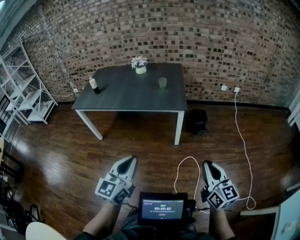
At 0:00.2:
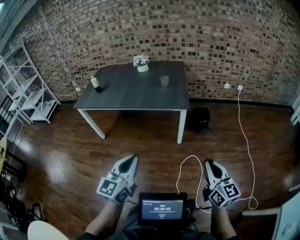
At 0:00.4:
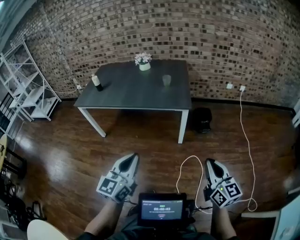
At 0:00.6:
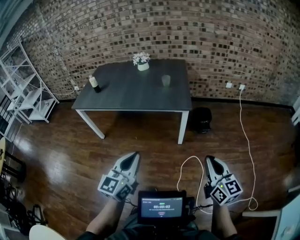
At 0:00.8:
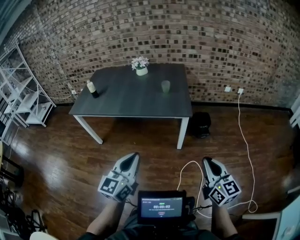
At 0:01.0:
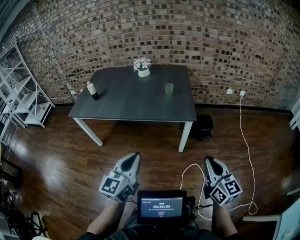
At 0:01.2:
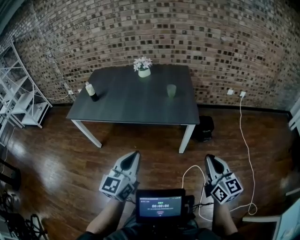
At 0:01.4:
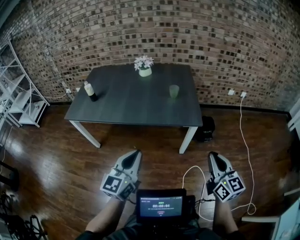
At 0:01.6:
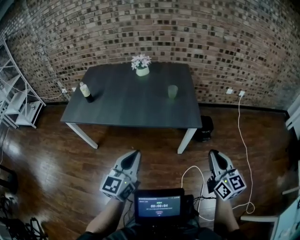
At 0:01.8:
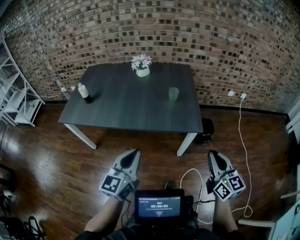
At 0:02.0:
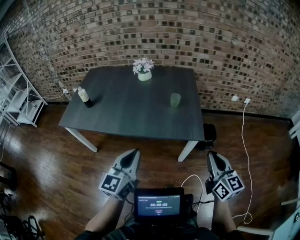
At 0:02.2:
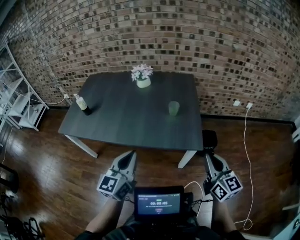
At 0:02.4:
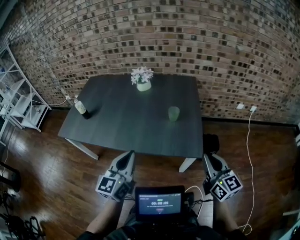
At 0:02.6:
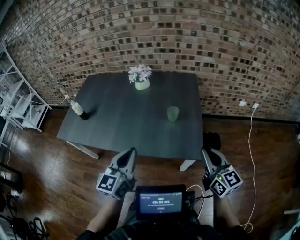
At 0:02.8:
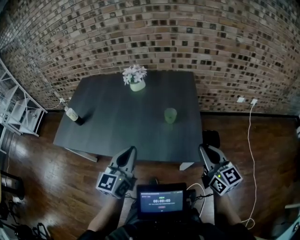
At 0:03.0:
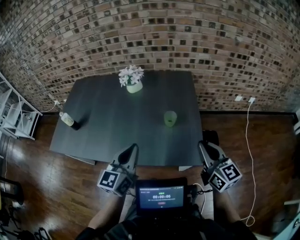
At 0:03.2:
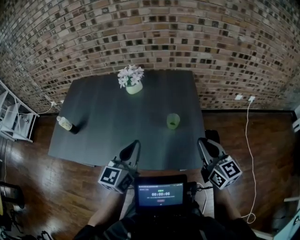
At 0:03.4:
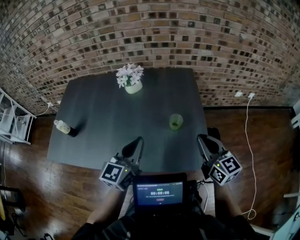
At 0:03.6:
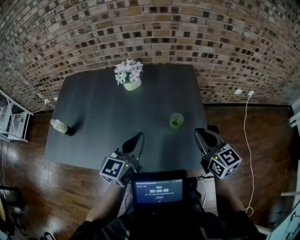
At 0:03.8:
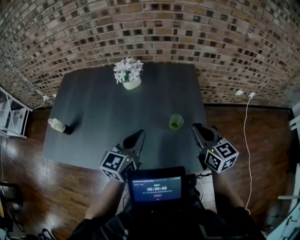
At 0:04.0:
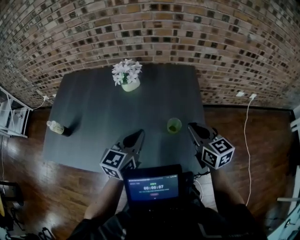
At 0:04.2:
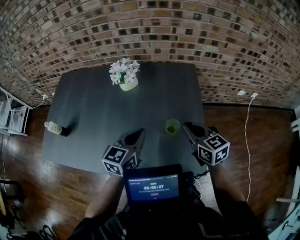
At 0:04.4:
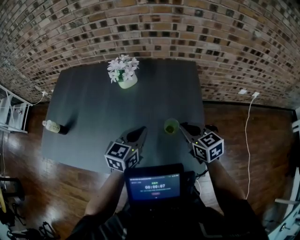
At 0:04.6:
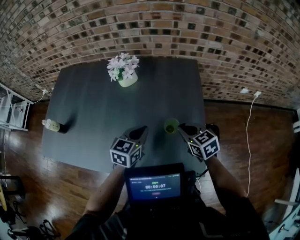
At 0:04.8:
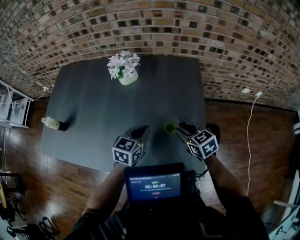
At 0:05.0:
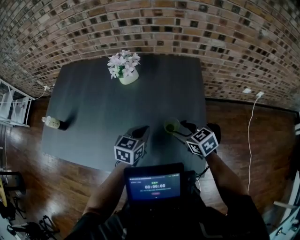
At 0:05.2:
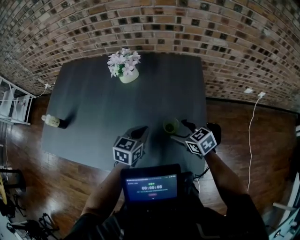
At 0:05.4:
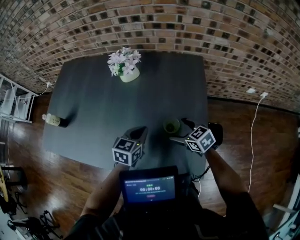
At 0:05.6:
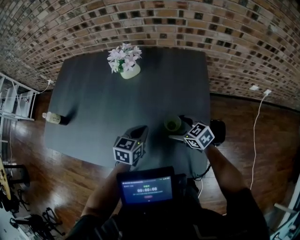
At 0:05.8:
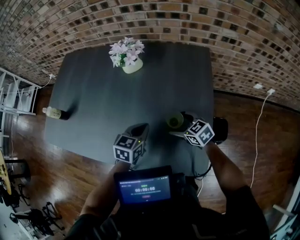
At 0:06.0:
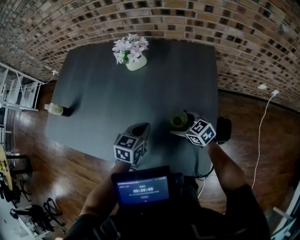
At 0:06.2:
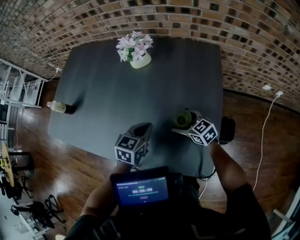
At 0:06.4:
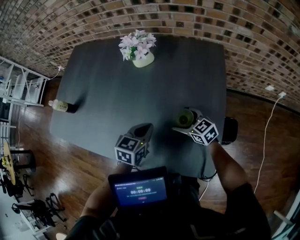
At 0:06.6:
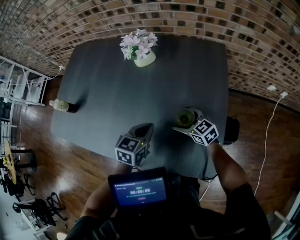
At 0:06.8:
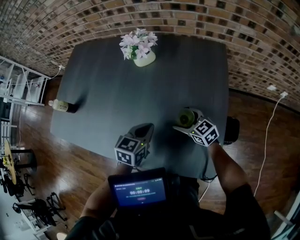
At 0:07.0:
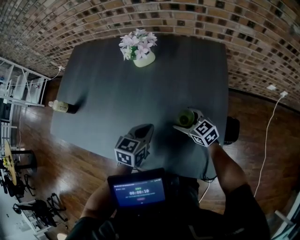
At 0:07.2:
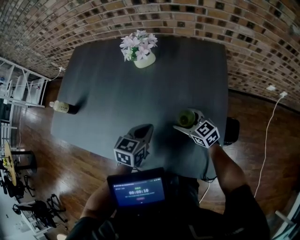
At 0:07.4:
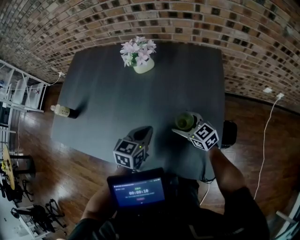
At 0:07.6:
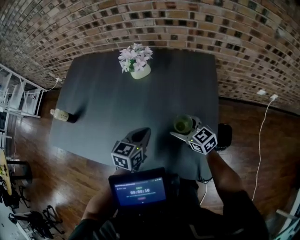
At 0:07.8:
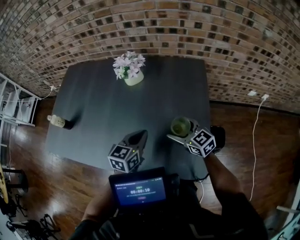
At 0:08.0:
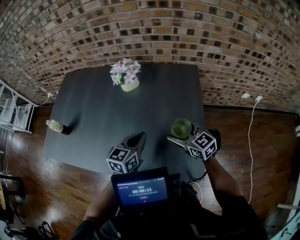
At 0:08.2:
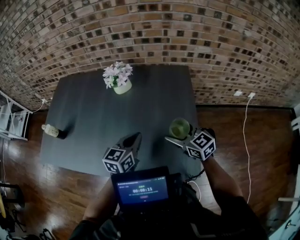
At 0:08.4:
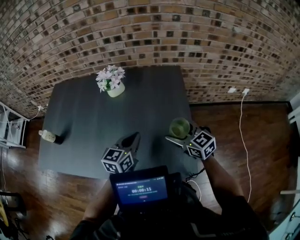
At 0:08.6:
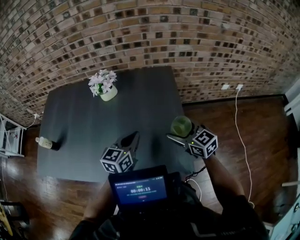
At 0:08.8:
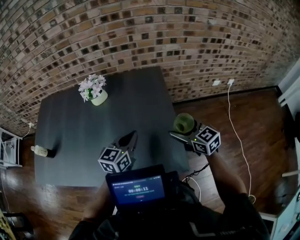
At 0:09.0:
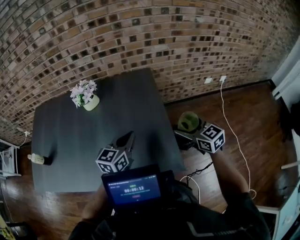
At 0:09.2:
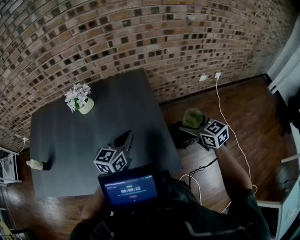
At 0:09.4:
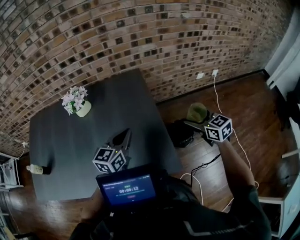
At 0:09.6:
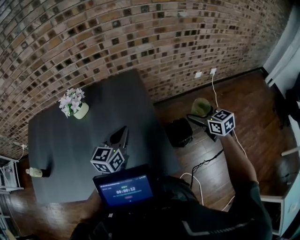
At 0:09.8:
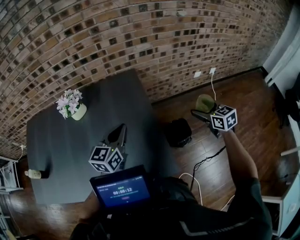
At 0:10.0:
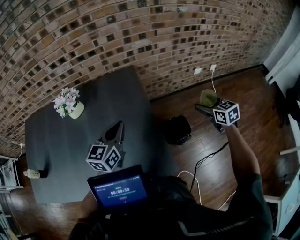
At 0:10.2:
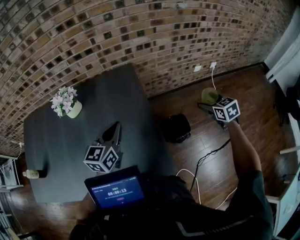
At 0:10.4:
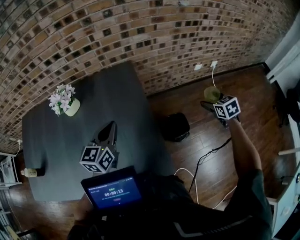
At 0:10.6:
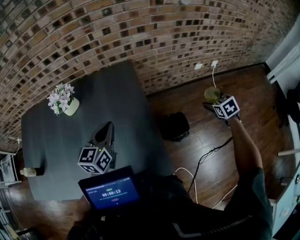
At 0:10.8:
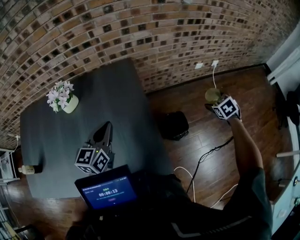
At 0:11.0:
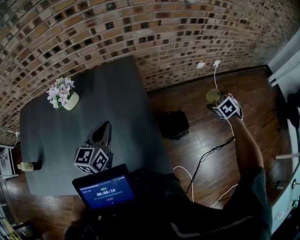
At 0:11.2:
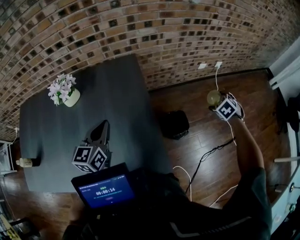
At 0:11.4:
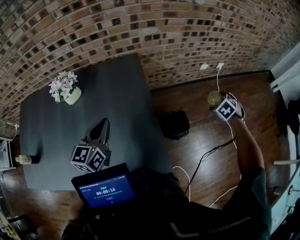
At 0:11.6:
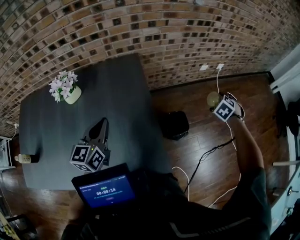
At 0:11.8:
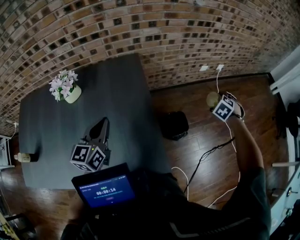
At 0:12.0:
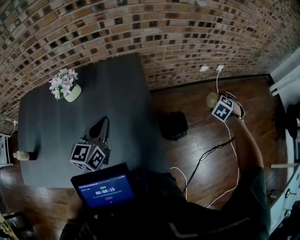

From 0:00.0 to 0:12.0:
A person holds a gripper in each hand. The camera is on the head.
From 0:00.0 to 0:01.6: Both grippers travel together forward, some 30 cm.
From 0:01.6 to 0:03.0: The two grippers go roughly 35 cm forward.
From 0:03.0 to 0:04.4: The left gripper goes some 20 cm forward. Meanwhile the right gripper moves forward and downward, about 25 cm, and swivels about 30 degrees.
From 0:04.4 to 0:06.0: The two grippers go about 15 cm downward. The right gripper rotates roughly 30 degrees, and opens its fingers.
From 0:06.0 to 0:07.6: The right gripper shifts about 5 cm upward.
From 0:07.6 to 0:09.0: The left gripper heads to the right and upward, covering some 15 cm, and turns by approximately 20 degrees; the right gripper moves to the right, upward and backward, some 25 cm, and swivels roughly 30 degrees.
From 0:09.0 to 0:10.4: The left gripper is displaced forward by approximately 10 cm; the right gripper shifts approximately 30 cm to the right and forward, and changes its angle by some 40 degrees.
From 0:10.4 to 0:12.0: The right gripper swivels about 50 degrees.

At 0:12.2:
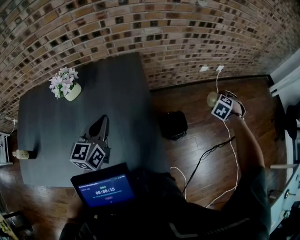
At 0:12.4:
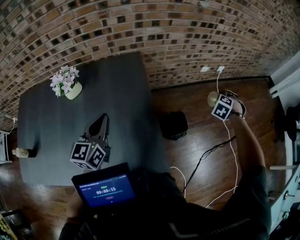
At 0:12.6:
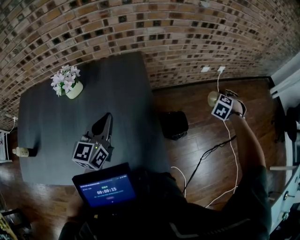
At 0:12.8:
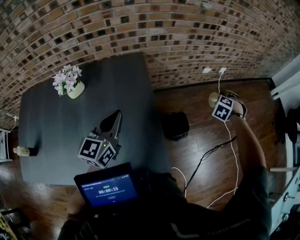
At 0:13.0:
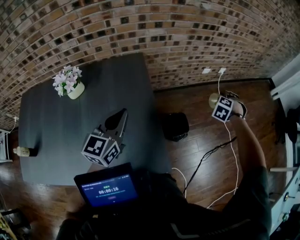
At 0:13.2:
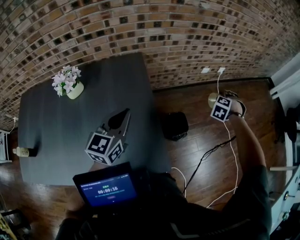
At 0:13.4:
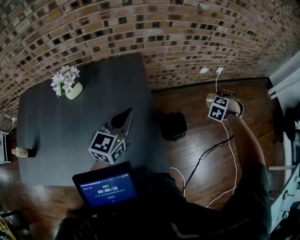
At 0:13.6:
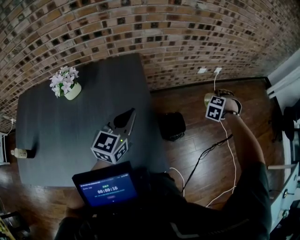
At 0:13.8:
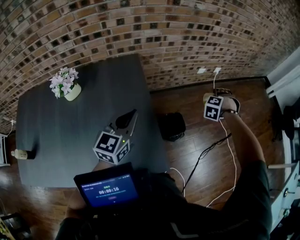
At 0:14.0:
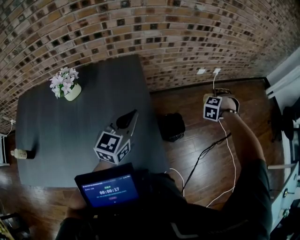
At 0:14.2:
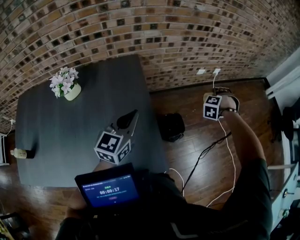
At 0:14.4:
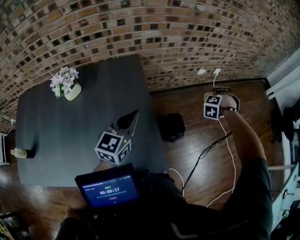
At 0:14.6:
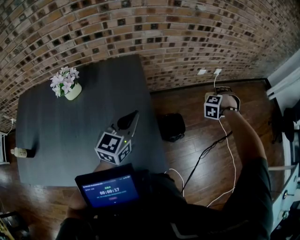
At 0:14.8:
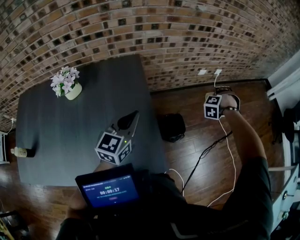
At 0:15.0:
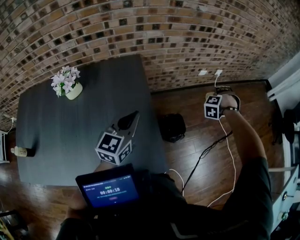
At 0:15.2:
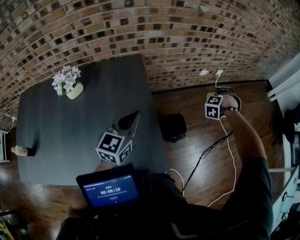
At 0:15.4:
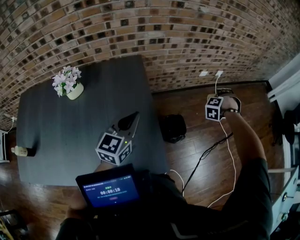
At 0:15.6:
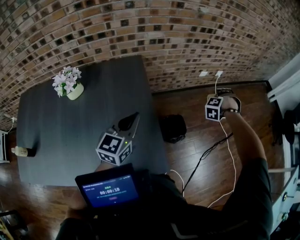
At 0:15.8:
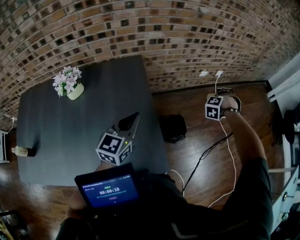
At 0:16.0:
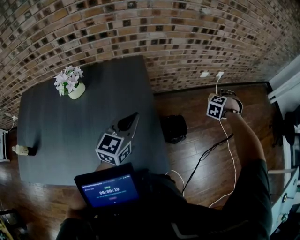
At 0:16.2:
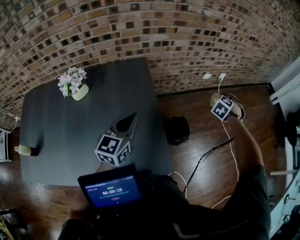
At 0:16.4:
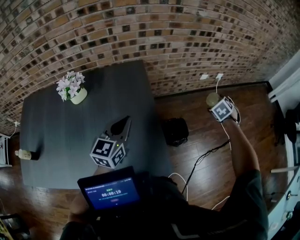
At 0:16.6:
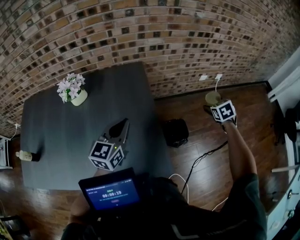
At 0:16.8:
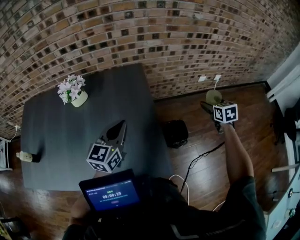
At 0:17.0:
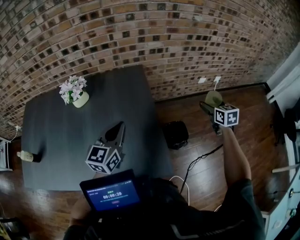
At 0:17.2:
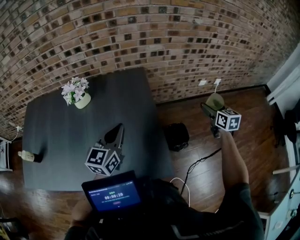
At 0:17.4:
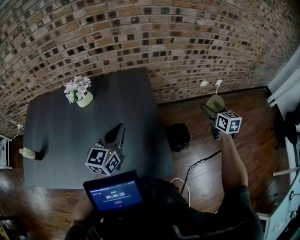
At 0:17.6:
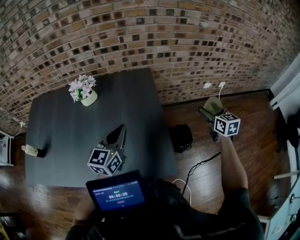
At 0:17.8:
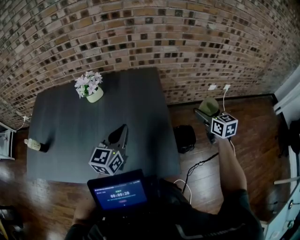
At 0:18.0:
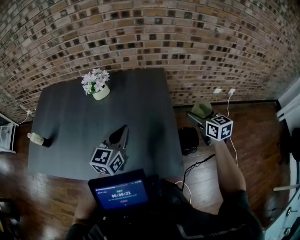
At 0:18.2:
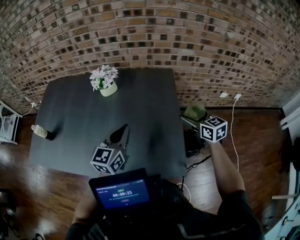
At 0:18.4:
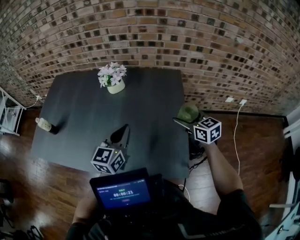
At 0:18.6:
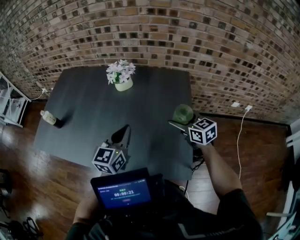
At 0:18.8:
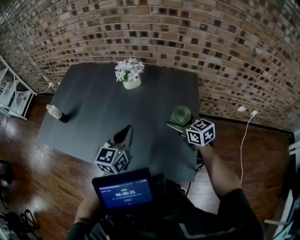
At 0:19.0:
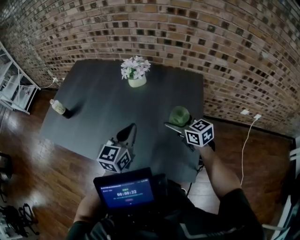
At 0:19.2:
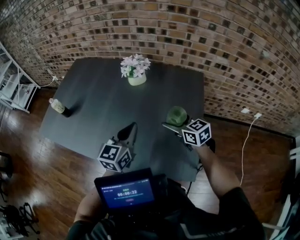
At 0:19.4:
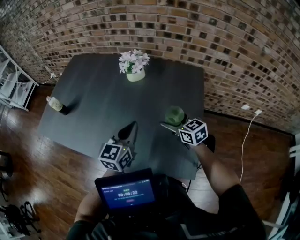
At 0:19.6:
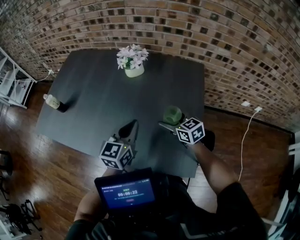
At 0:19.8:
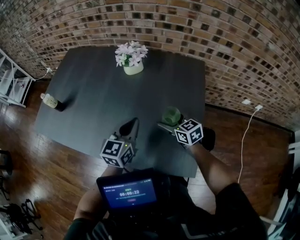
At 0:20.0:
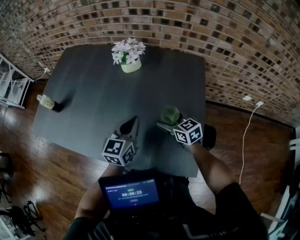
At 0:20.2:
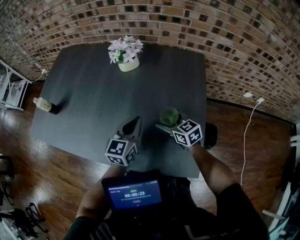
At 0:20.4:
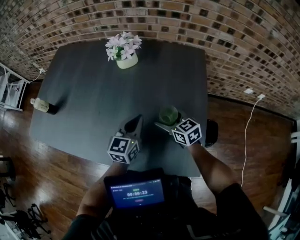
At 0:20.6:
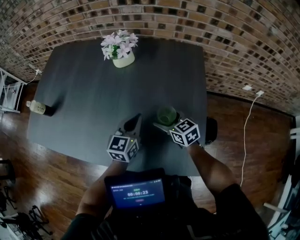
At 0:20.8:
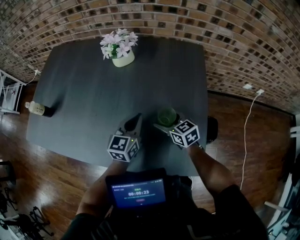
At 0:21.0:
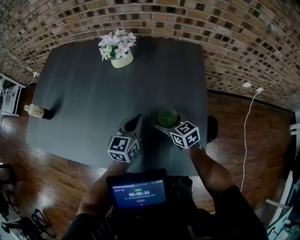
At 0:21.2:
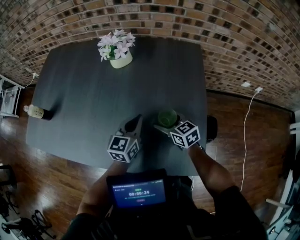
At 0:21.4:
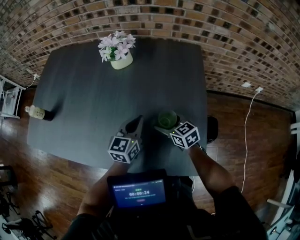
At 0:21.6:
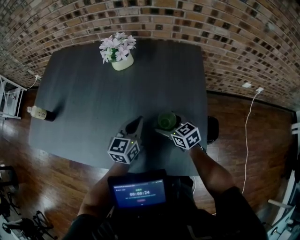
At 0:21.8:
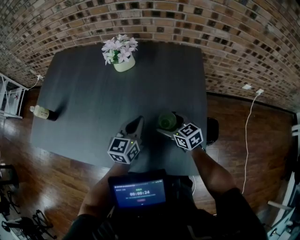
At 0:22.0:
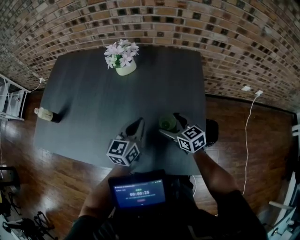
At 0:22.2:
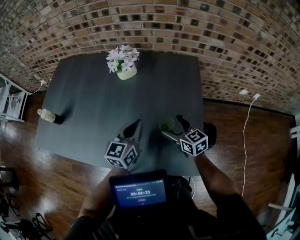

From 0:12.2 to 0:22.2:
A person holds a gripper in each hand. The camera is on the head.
From 0:12.2 to 0:13.6: The left gripper travels to the right and forward by about 10 cm.
From 0:13.6 to 0:15.0: The grippers make only small movements.
From 0:15.0 to 0:16.4: The right gripper rolls clockwise, seen from behind, by approximately 50 degrees. The left gripper changes place by approximately 5 cm.
From 0:16.4 to 0:18.0: The right gripper ends up about 25 cm from where it was, and tips its fingers upward by some 40 degrees, while the left gripper shifts by about 15 cm.
From 0:18.0 to 0:19.4: The left gripper ends up approximately 10 cm from where it was. The right gripper ends up approximately 30 cm from where it was, and changes its angle by about 30 degrees.
From 0:19.4 to 0:20.8: The left gripper is displaced downward and forward by approximately 15 cm, while the right gripper travels downward by roughly 15 cm.
From 0:20.8 to 0:22.2: Both grippers move upward, approximately 10 cm.

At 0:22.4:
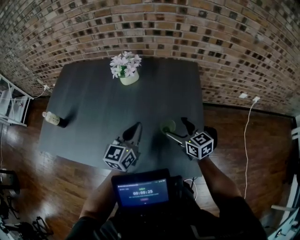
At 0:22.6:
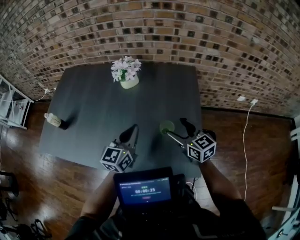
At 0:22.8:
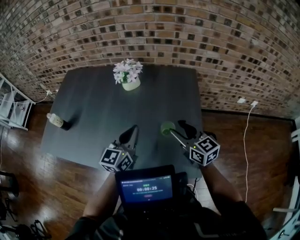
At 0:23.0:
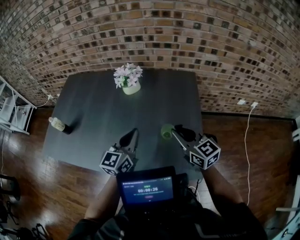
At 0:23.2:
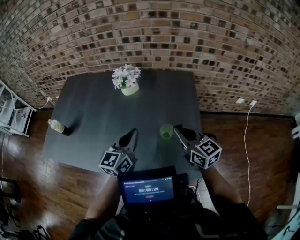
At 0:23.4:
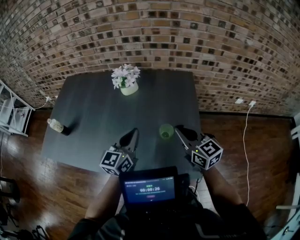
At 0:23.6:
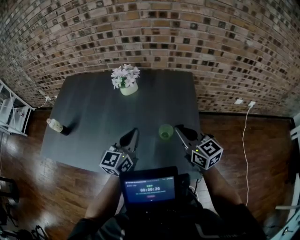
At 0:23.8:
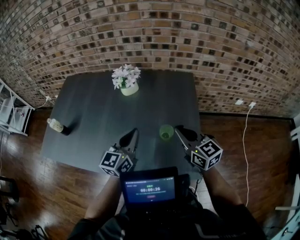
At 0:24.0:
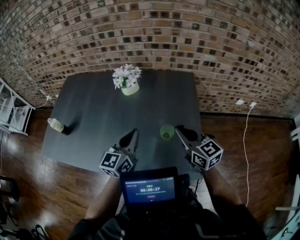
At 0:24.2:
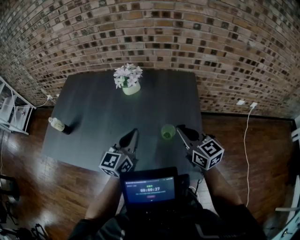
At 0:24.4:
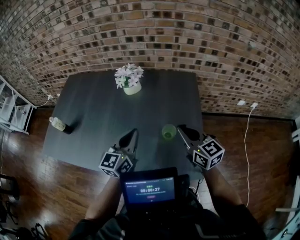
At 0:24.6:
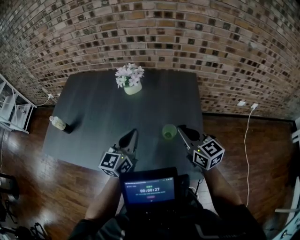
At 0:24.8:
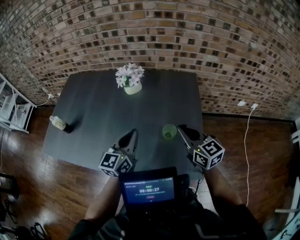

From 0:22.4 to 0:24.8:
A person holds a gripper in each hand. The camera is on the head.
From 0:22.4 to 0:23.6: The right gripper heads upward, covering about 10 cm, and closes; the left gripper changes place by roughly 5 cm.
From 0:23.6 to 0:24.8: The grippers move only a little.
